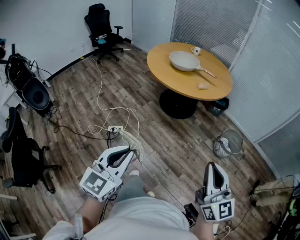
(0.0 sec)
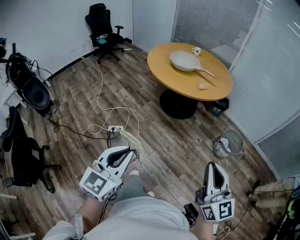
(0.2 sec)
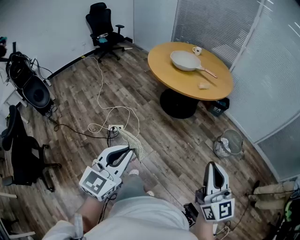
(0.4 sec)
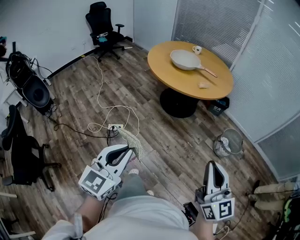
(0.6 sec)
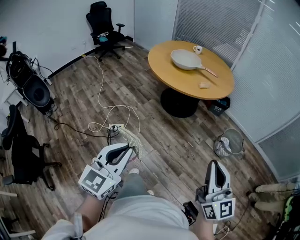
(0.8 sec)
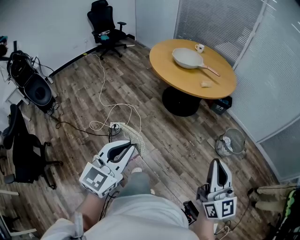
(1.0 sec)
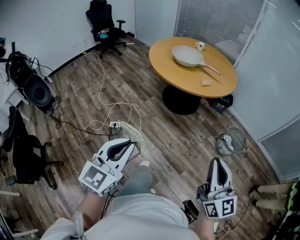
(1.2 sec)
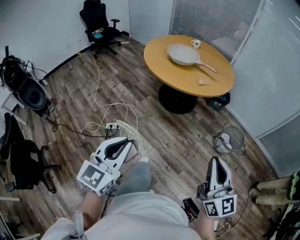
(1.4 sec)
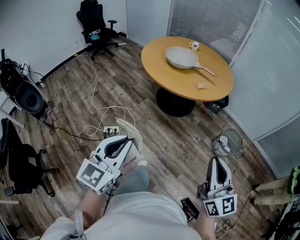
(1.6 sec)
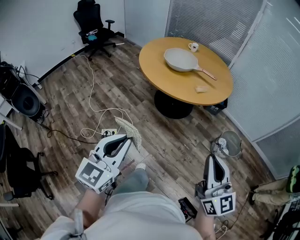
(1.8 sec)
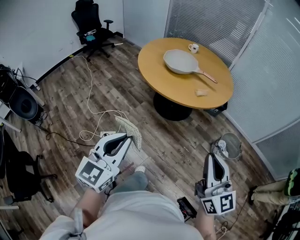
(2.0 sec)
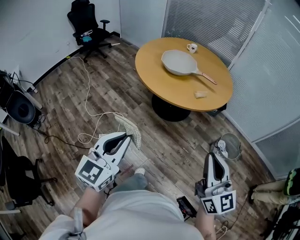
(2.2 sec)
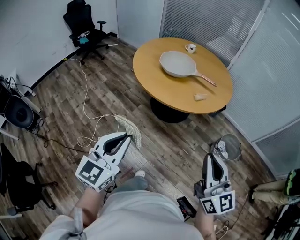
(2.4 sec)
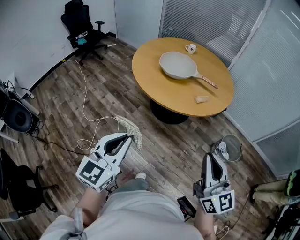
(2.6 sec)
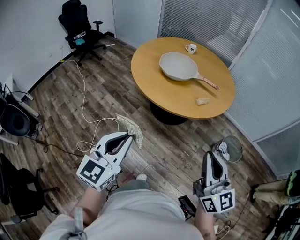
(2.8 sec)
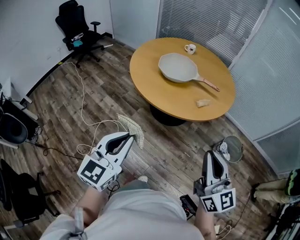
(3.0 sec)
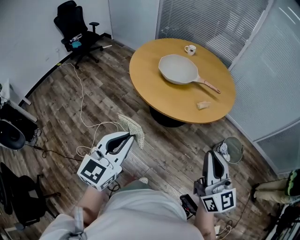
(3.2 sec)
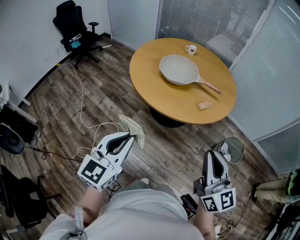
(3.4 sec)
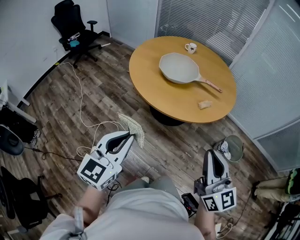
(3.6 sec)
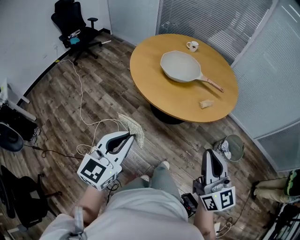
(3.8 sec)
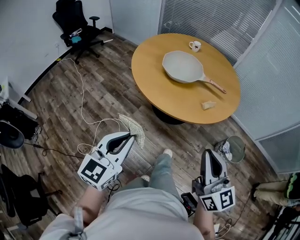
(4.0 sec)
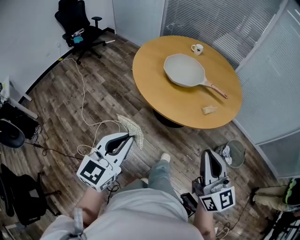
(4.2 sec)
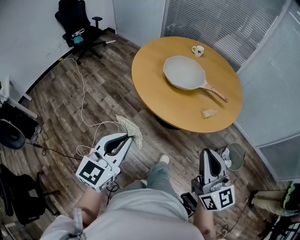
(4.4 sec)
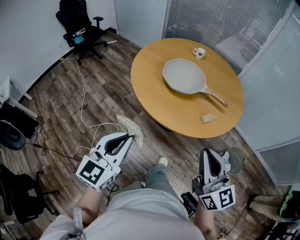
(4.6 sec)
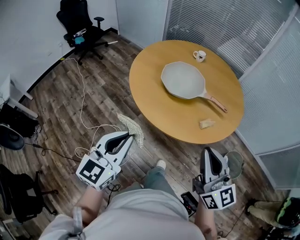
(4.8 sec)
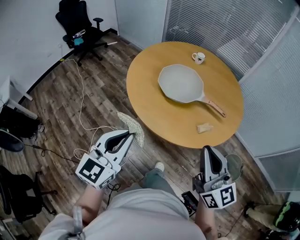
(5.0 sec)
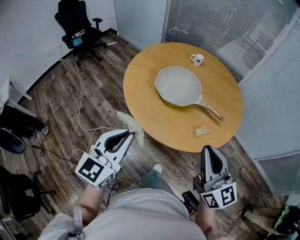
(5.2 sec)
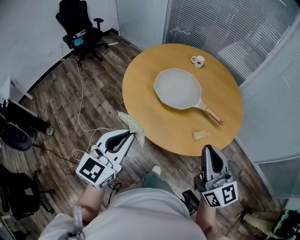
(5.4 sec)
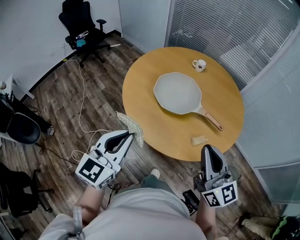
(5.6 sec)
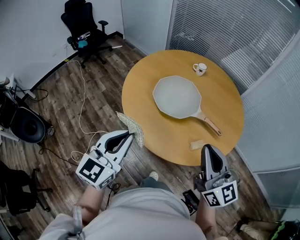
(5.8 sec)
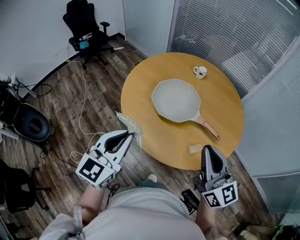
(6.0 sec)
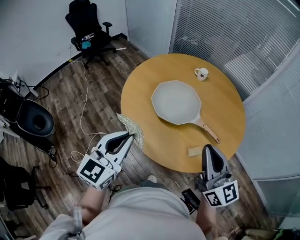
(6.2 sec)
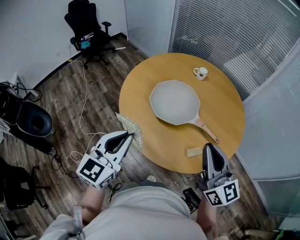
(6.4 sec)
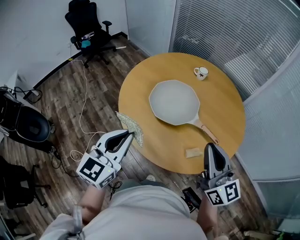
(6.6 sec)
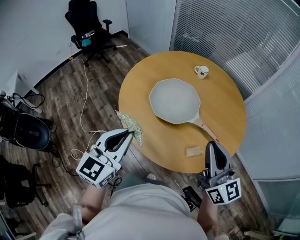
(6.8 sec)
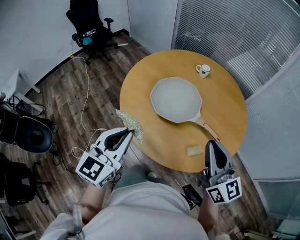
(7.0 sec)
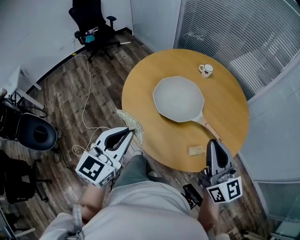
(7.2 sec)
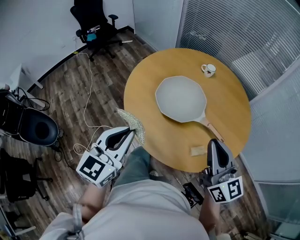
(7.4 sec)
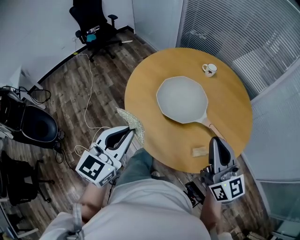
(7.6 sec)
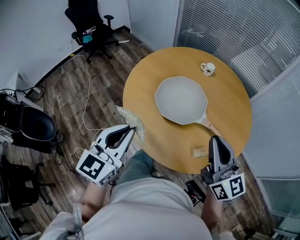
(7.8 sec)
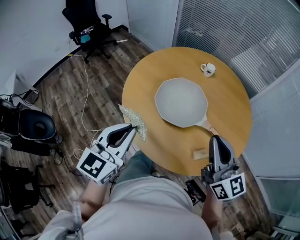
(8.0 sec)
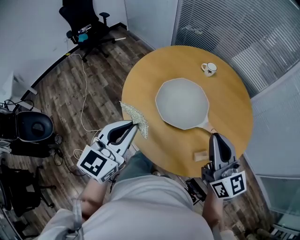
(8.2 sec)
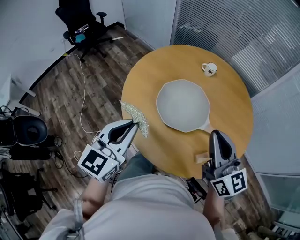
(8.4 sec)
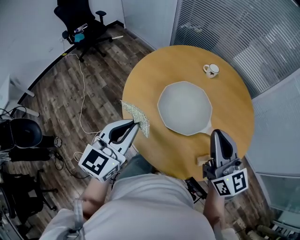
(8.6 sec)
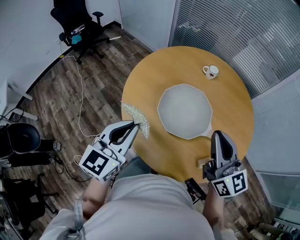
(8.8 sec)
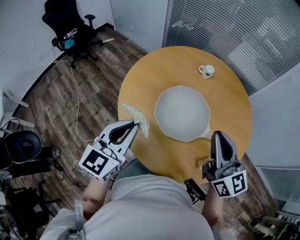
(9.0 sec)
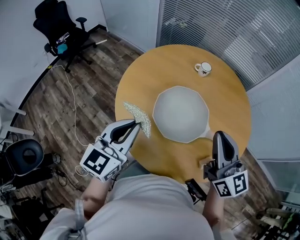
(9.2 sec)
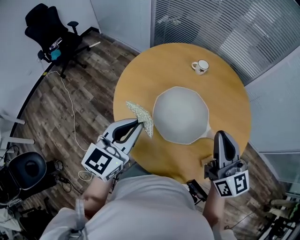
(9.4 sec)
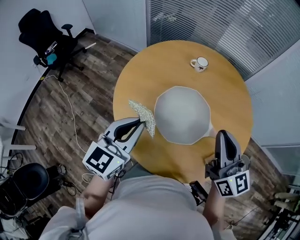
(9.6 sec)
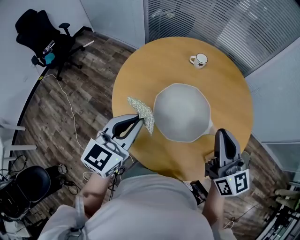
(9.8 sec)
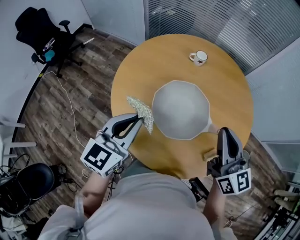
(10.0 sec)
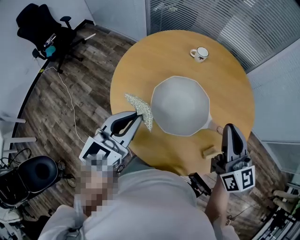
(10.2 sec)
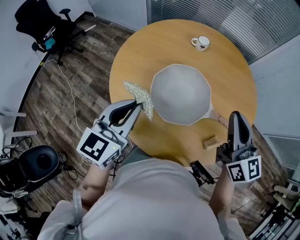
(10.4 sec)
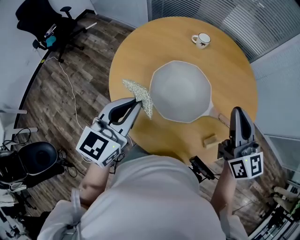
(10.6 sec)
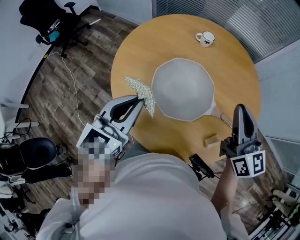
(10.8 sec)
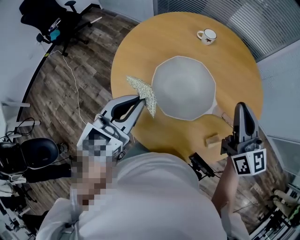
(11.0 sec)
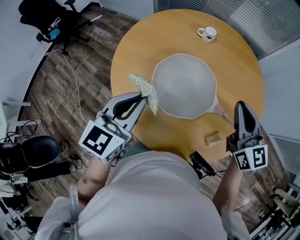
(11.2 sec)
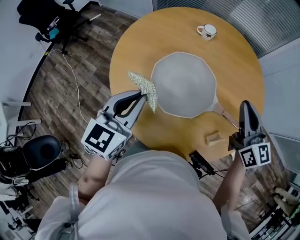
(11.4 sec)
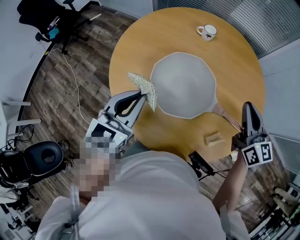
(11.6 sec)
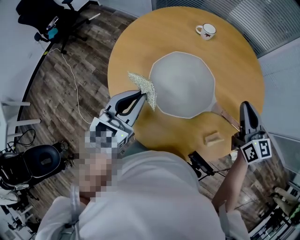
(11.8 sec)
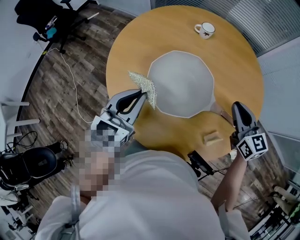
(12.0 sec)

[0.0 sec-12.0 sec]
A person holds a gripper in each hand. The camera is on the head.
0.0 sec to 1.6 sec: Both grippers travel together forward, approximately 10 cm.
1.6 sec to 3.0 sec: The right gripper travels forward and to the left by some 25 cm. The left gripper heads forward, covering about 25 cm.
3.0 sec to 4.4 sec: Both grippers travel together forward, about 10 cm.
4.4 sec to 6.0 sec: Both grippers move forward and to the right, about 25 cm.
6.0 sec to 7.6 sec: The right gripper heads forward, covering roughly 5 cm.
7.6 sec to 9.0 sec: The left gripper goes roughly 15 cm forward. The right gripper shifts roughly 15 cm forward and to the left.
9.0 sec to 10.4 sec: The left gripper is displaced forward by approximately 5 cm, while the right gripper heads to the right, covering some 5 cm.
10.4 sec to 12.0 sec: The right gripper is displaced downward and to the right by approximately 15 cm, and rotates some 20 degrees. The left gripper moves downward, approximately 5 cm.

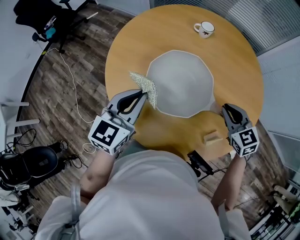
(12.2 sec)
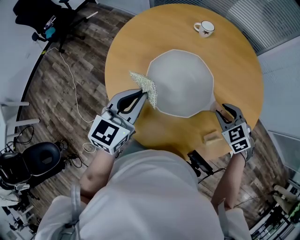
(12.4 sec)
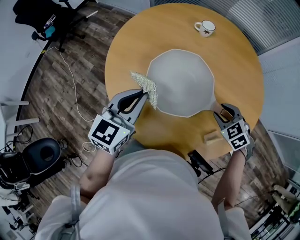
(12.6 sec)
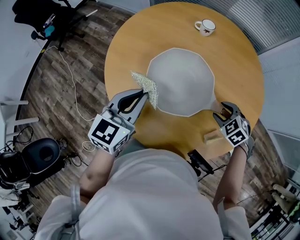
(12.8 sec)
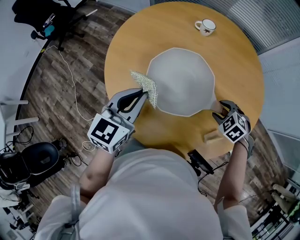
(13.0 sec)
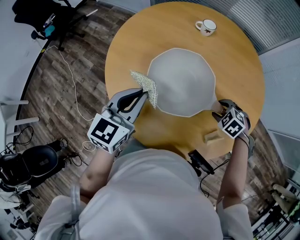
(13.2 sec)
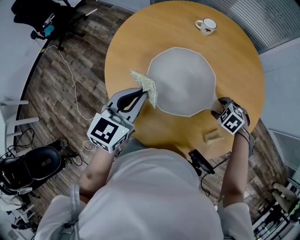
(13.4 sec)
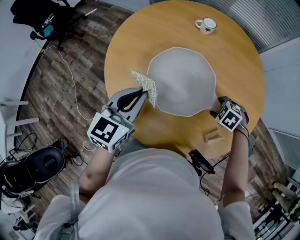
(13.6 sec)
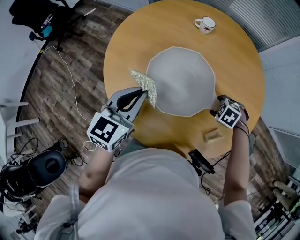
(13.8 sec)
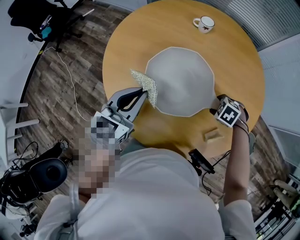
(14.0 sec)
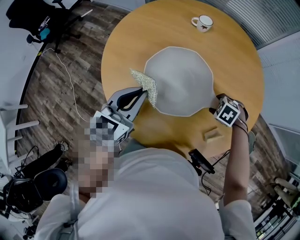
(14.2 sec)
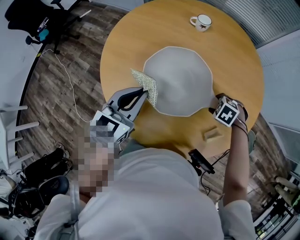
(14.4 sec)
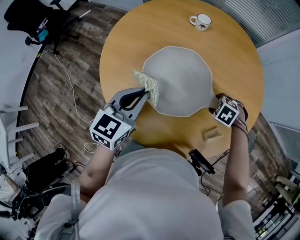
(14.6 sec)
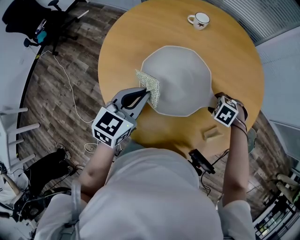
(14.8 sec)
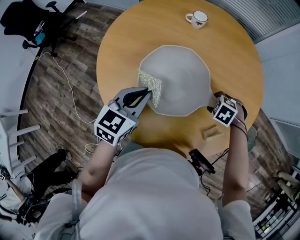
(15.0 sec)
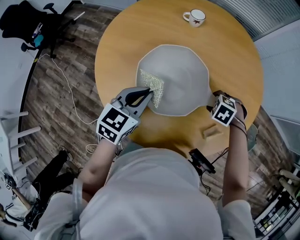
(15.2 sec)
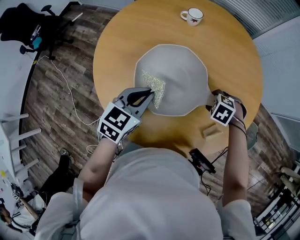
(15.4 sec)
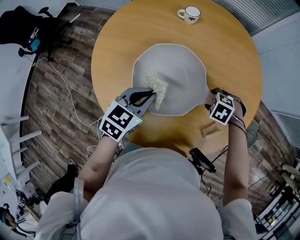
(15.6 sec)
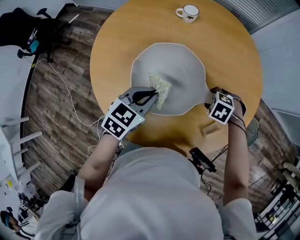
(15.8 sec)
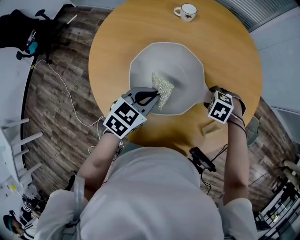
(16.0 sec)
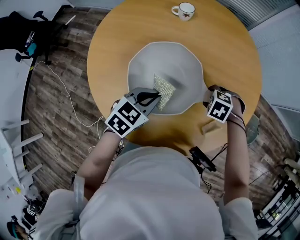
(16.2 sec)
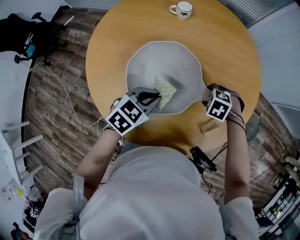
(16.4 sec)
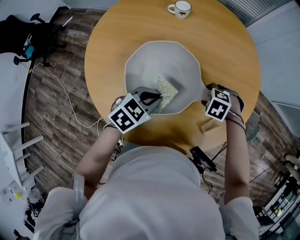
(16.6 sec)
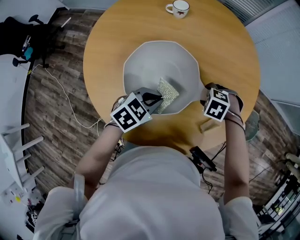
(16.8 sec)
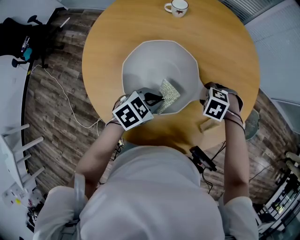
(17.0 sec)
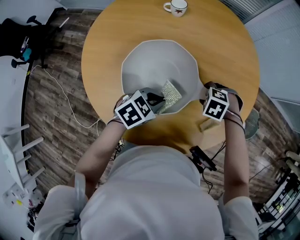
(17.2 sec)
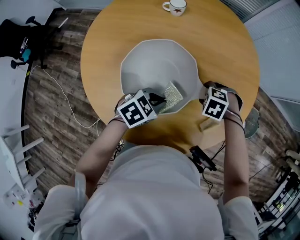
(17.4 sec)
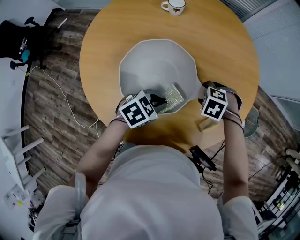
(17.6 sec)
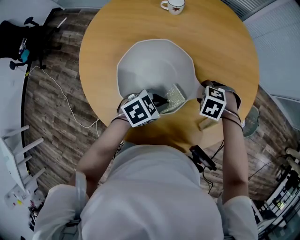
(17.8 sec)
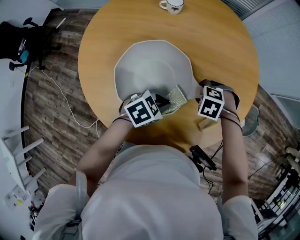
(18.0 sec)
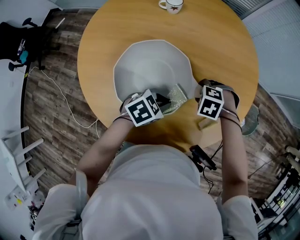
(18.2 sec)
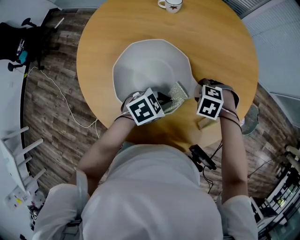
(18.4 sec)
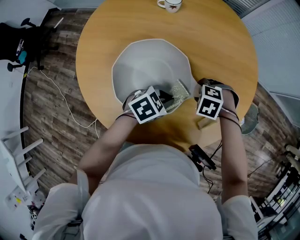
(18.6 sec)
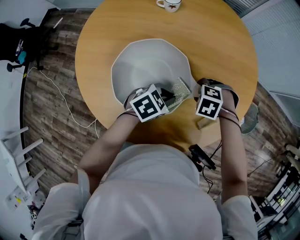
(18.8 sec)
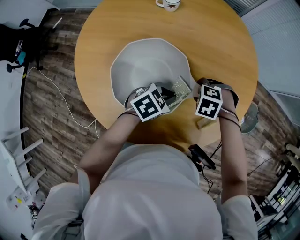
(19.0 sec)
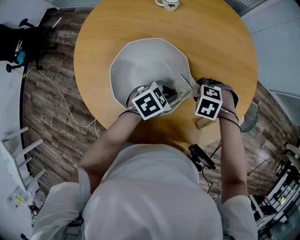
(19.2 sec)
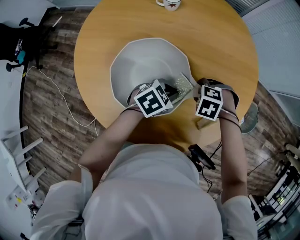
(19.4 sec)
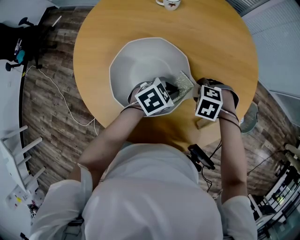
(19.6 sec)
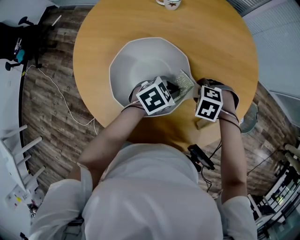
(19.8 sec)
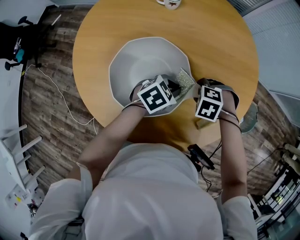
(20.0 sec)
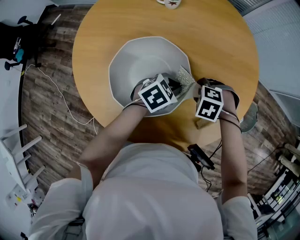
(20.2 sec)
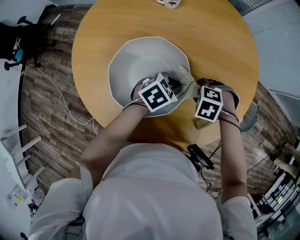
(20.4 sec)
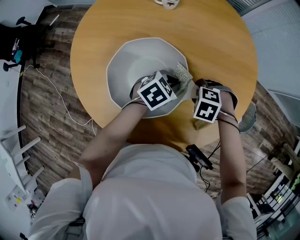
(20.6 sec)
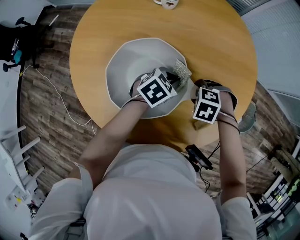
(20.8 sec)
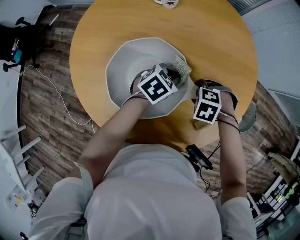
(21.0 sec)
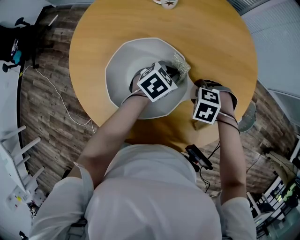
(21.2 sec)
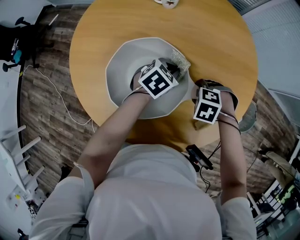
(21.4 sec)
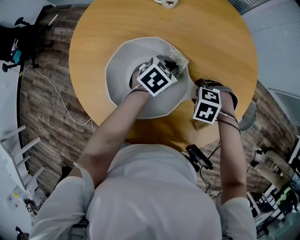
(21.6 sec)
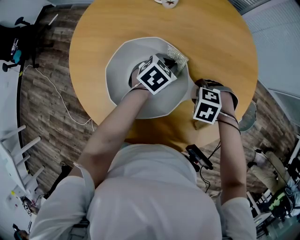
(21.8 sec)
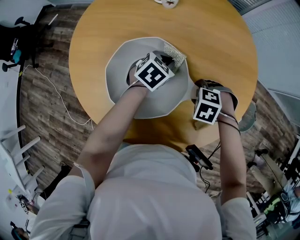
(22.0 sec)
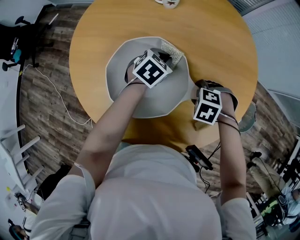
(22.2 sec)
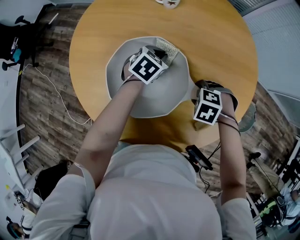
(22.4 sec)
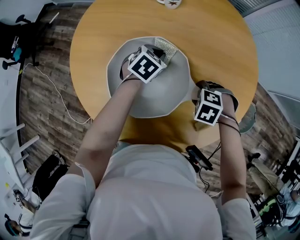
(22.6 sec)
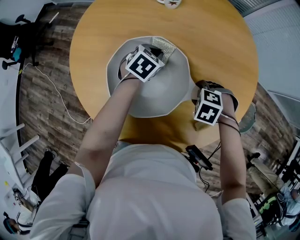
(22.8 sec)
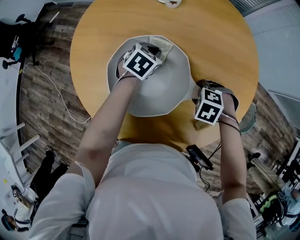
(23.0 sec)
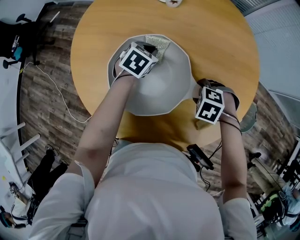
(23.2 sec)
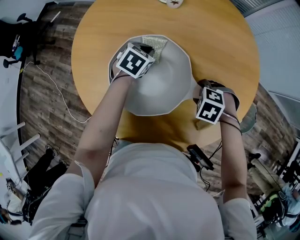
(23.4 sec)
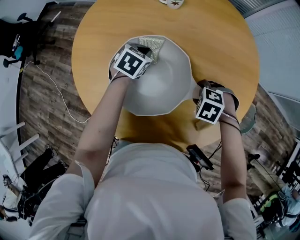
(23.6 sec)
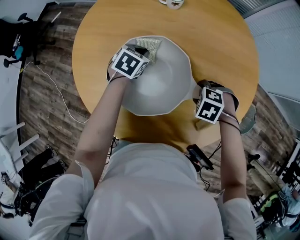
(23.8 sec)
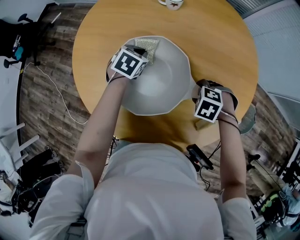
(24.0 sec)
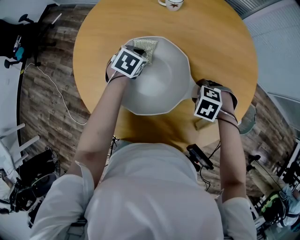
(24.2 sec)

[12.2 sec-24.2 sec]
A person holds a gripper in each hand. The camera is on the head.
12.2 sec to 13.8 sec: The right gripper heads downward, covering approximately 15 cm, tilts its fingers about 50 degrees downward, and opens up.
13.8 sec to 15.2 sec: The left gripper heads downward, covering roughly 5 cm.
15.2 sec to 16.6 sec: The left gripper travels downward by some 5 cm, and changes its angle by some 30 degrees.
16.6 sec to 18.2 sec: The left gripper shifts by some 10 cm.
18.2 sec to 19.8 sec: The left gripper ends up some 5 cm from where it was.
19.8 sec to 21.2 sec: The left gripper changes place by about 5 cm.
21.2 sec to 22.6 sec: The left gripper moves approximately 10 cm.
22.6 sec to 24.2 sec: The left gripper ends up about 10 cm from where it was.
